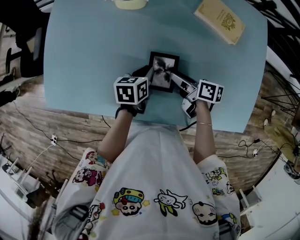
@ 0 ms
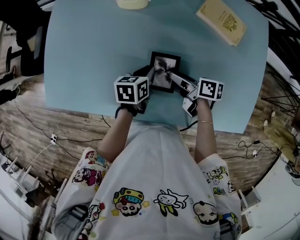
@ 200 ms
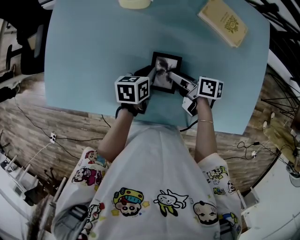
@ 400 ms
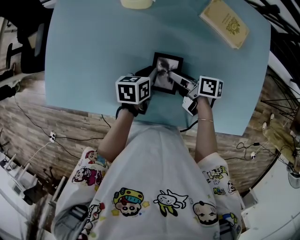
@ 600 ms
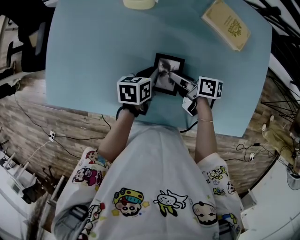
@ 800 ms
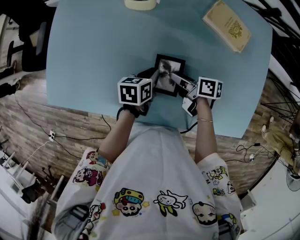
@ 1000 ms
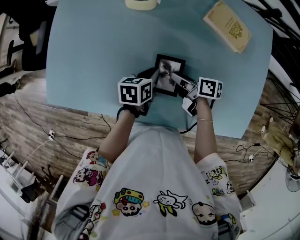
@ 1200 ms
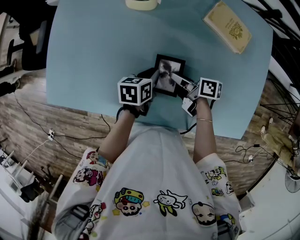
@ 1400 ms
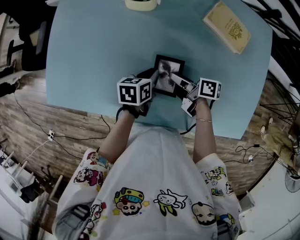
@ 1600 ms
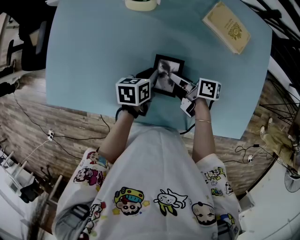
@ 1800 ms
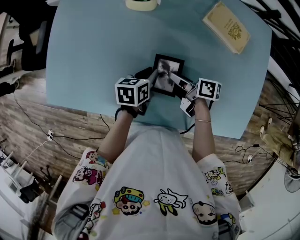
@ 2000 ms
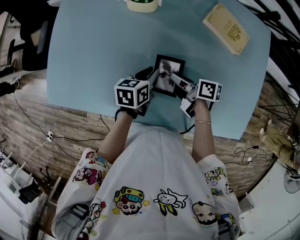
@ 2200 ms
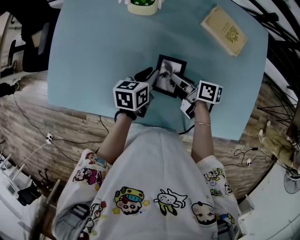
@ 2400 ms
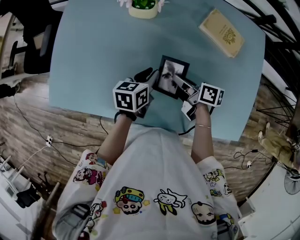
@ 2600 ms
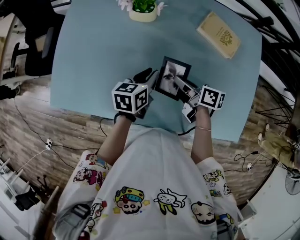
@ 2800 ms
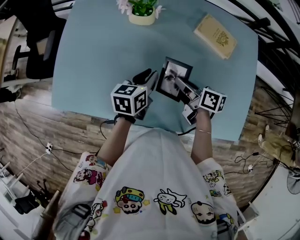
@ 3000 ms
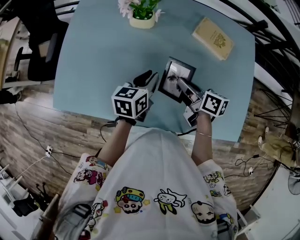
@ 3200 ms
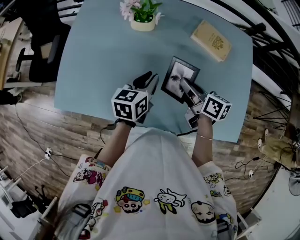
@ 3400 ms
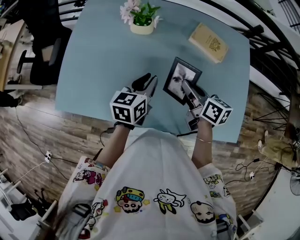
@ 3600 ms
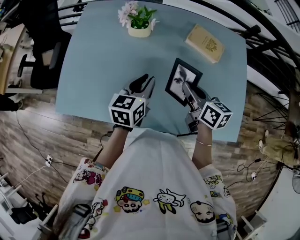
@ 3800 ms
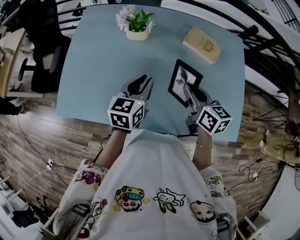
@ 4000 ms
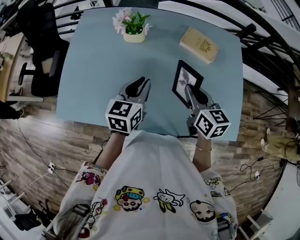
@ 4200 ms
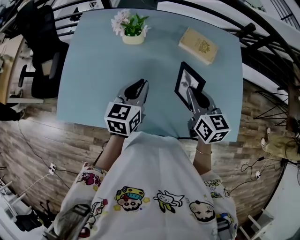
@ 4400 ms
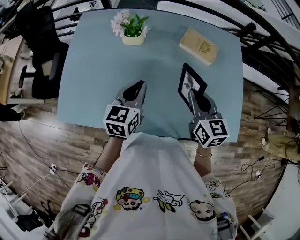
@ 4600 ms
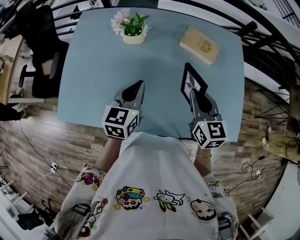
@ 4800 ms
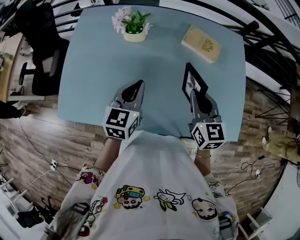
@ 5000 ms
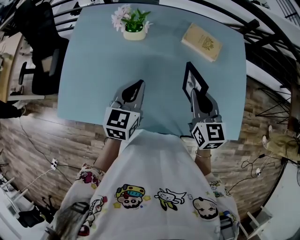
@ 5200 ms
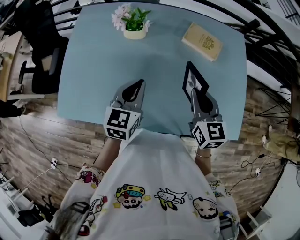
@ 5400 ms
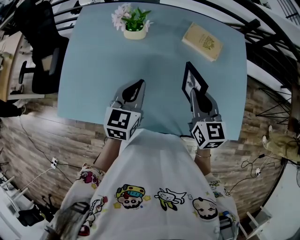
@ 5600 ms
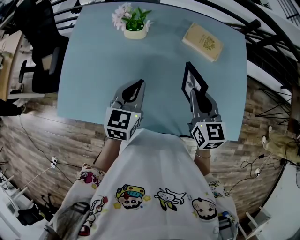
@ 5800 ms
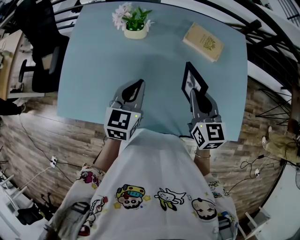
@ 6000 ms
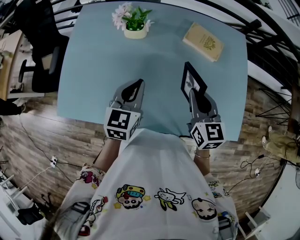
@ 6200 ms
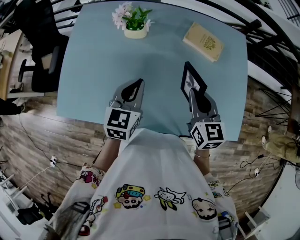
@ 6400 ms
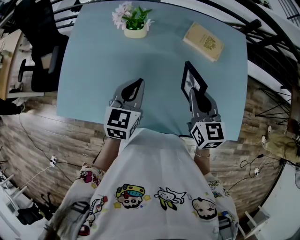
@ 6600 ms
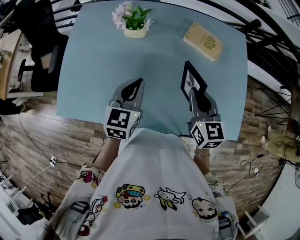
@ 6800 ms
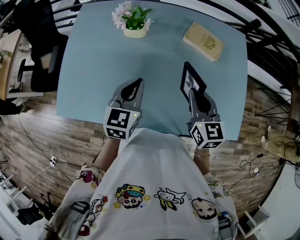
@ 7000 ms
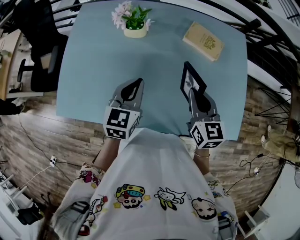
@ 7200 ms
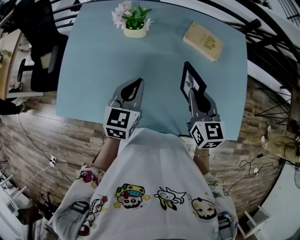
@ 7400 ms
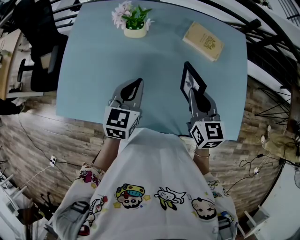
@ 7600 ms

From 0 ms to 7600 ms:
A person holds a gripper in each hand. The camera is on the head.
From 0 ms to 1600 ms: The right gripper closes its fingers.
From 1600 ms to 3000 ms: The grippers both shift upward by roughly 10 cm.
From 3000 ms to 4600 ms: The right gripper shifts approximately 15 cm upward and to the right, and turns by roughly 50 degrees, while the left gripper moves upward, about 10 cm, and rotates some 20 degrees.
From 4600 ms to 6000 ms: There are only small adjustments of the grippers.
From 6000 ms to 7600 ms: Both grippers stay about where they are.

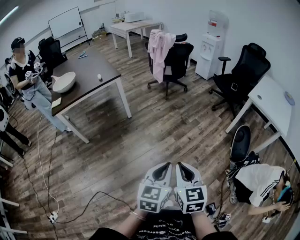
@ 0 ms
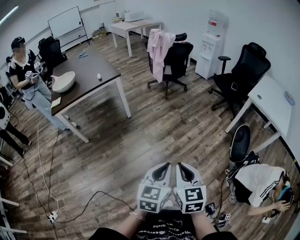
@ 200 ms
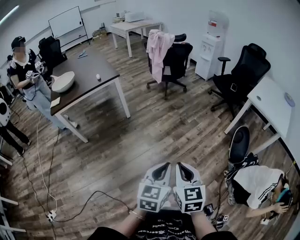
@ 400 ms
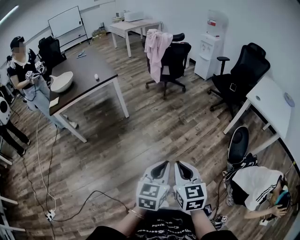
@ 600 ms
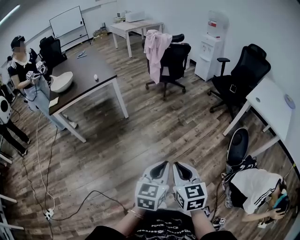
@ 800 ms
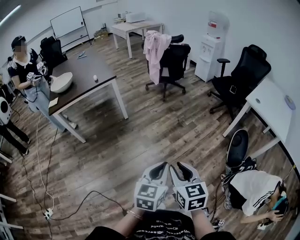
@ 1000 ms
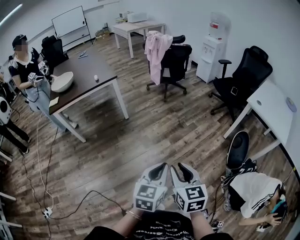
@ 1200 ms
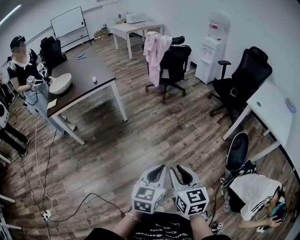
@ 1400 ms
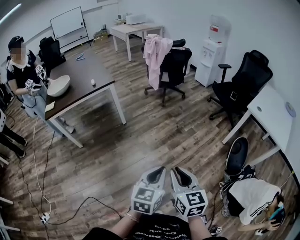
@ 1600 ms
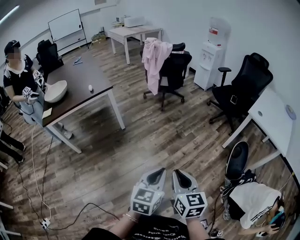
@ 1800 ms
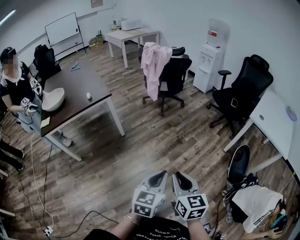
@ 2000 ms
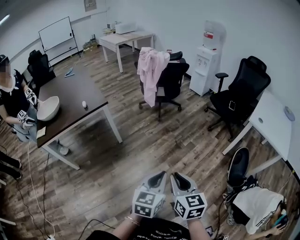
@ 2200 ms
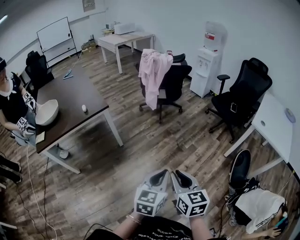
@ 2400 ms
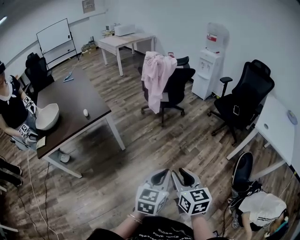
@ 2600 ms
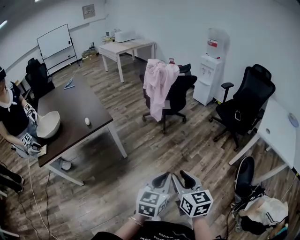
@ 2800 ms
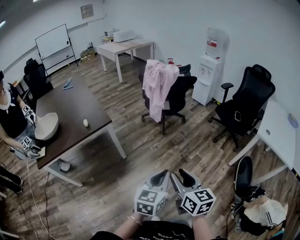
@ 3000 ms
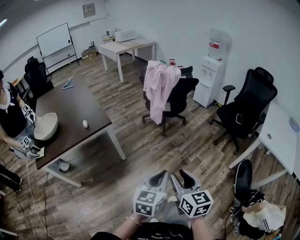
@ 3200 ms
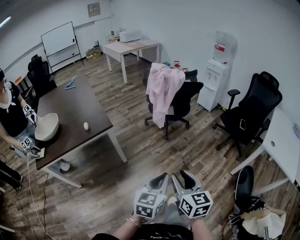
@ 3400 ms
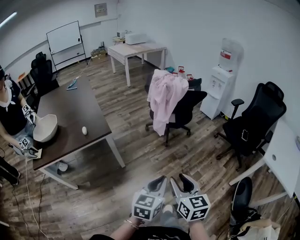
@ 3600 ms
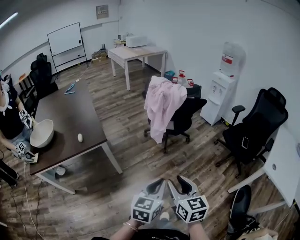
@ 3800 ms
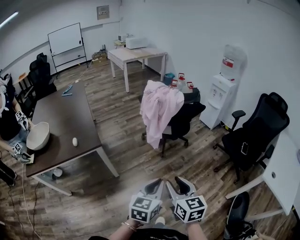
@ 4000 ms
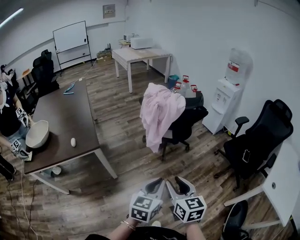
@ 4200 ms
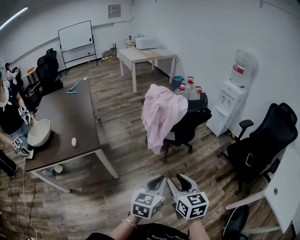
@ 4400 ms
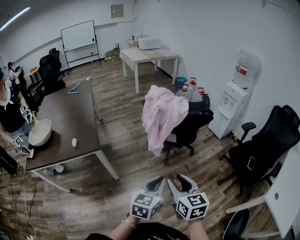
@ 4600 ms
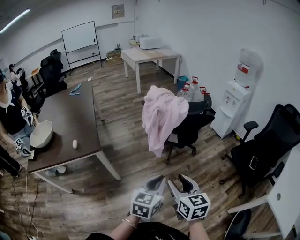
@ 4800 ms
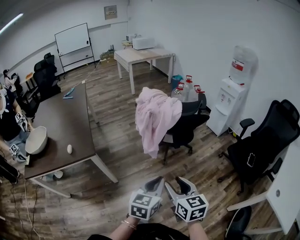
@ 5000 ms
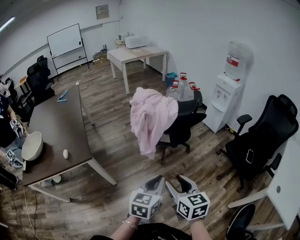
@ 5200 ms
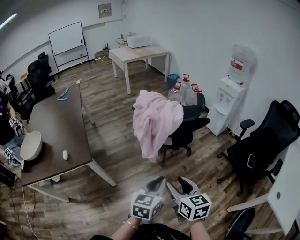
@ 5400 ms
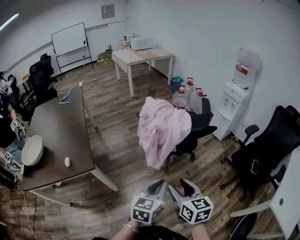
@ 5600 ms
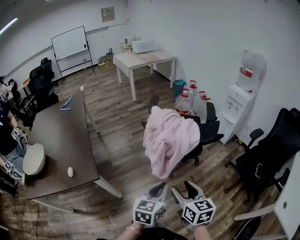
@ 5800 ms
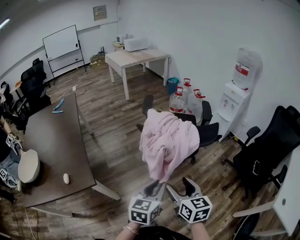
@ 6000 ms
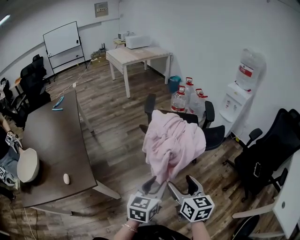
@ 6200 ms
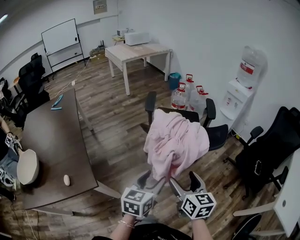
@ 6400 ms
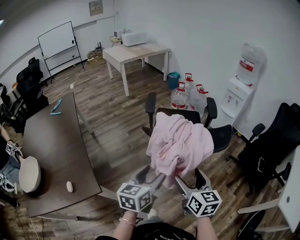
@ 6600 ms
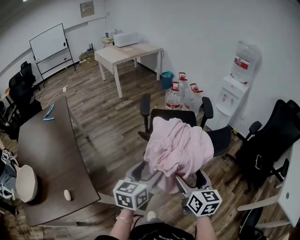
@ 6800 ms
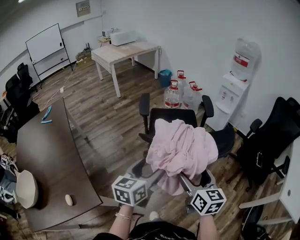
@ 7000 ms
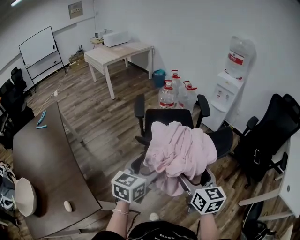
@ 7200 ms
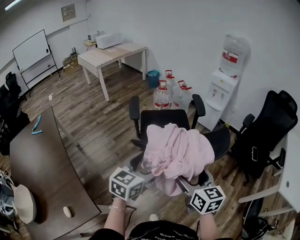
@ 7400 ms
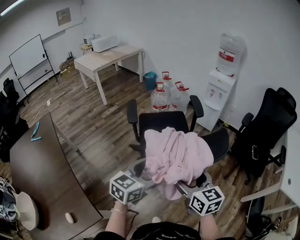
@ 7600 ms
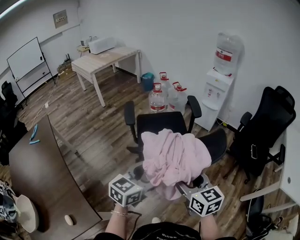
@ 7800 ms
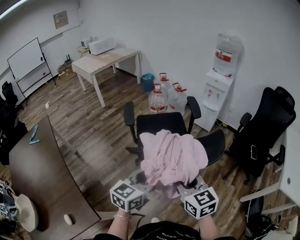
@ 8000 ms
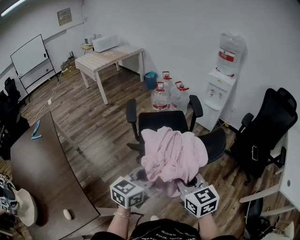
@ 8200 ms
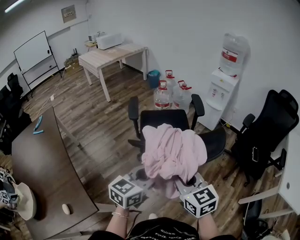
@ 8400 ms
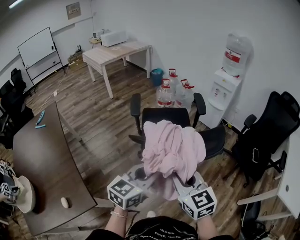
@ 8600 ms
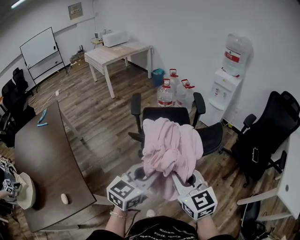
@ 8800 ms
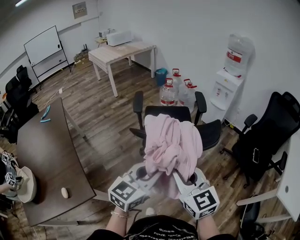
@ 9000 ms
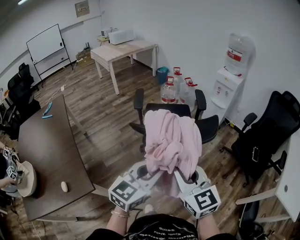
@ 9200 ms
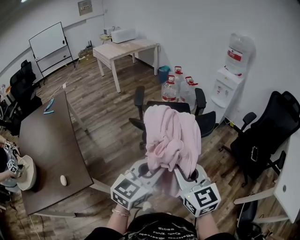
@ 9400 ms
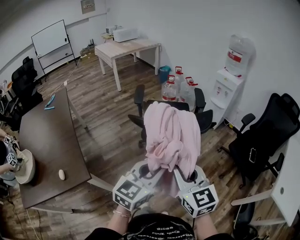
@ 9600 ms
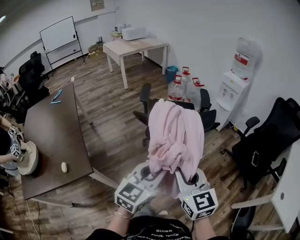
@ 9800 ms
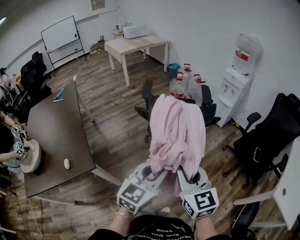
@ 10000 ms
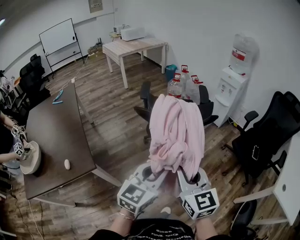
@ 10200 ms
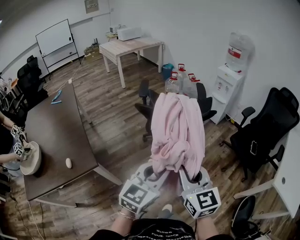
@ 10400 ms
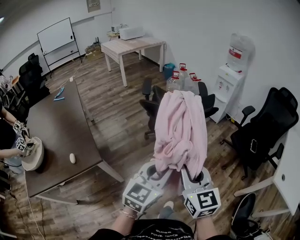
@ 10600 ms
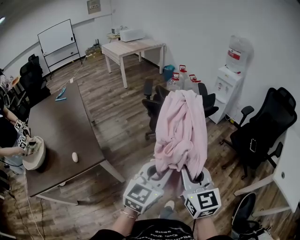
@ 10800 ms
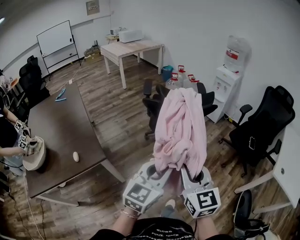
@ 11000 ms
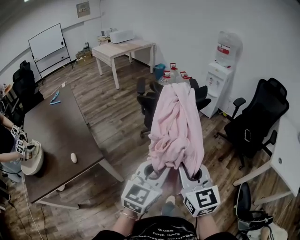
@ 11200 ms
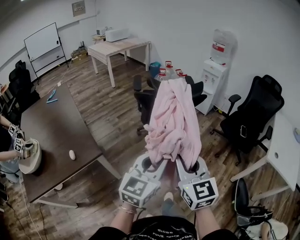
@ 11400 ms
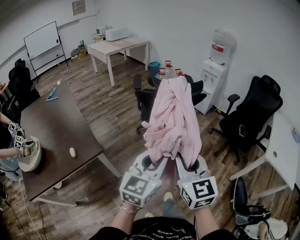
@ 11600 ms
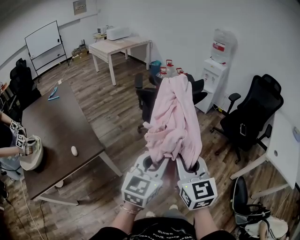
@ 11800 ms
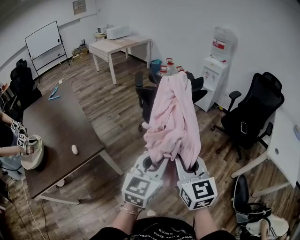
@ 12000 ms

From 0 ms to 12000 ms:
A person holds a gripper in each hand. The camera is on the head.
From 0 ms to 1600 ms: The right gripper shifts approximately 10 cm forward and to the right. Meanwhile the left gripper shifts approximately 10 cm forward.
From 1600 ms to 3000 ms: Both grippers travel together forward and to the left, approximately 30 cm.
From 3000 ms to 4400 ms: The grippers both shift forward by approximately 30 cm.
From 4400 ms to 6000 ms: Both grippers travel together forward, about 20 cm.
From 6000 ms to 7600 ms: Both grippers travel together forward, some 15 cm. The left gripper rotates approximately 30 degrees, and opens its fingers.
From 7600 ms to 9000 ms: The left gripper travels backward and to the right by some 10 cm, and closes its fingers; the right gripper heads backward and upward, covering approximately 10 cm, rotates approximately 30 degrees, and closes up.
From 9000 ms to 10400 ms: The two grippers go some 15 cm backward.
From 10400 ms to 12000 ms: The two grippers go about 15 cm backward.

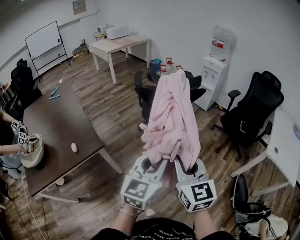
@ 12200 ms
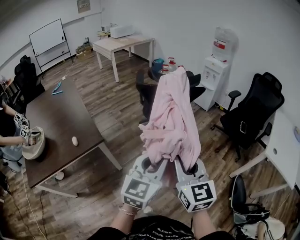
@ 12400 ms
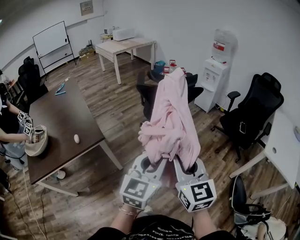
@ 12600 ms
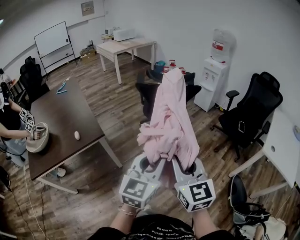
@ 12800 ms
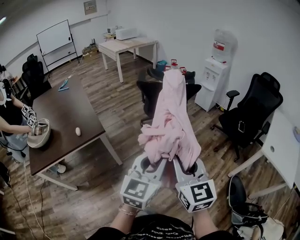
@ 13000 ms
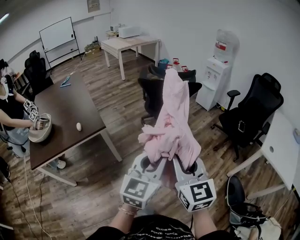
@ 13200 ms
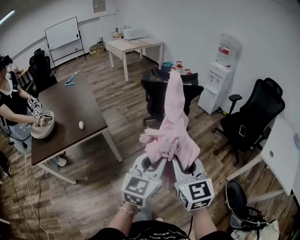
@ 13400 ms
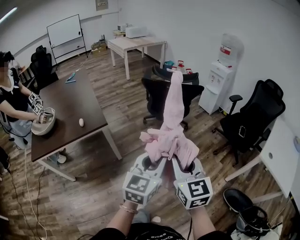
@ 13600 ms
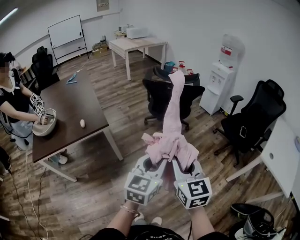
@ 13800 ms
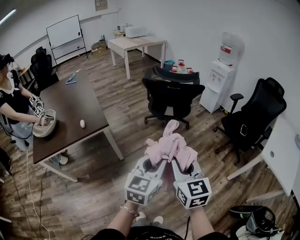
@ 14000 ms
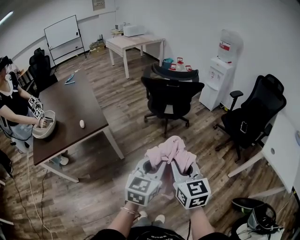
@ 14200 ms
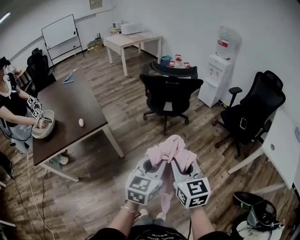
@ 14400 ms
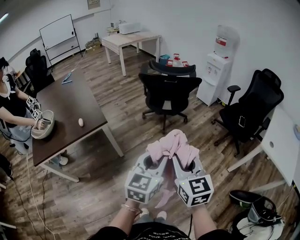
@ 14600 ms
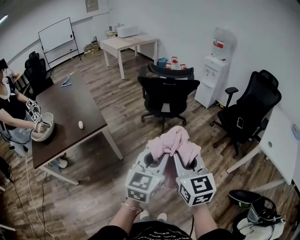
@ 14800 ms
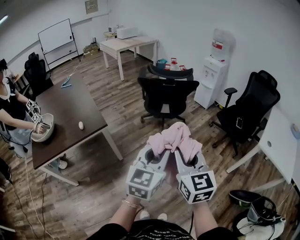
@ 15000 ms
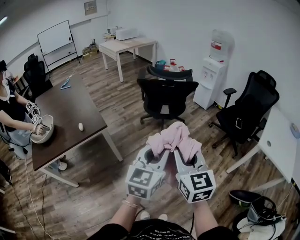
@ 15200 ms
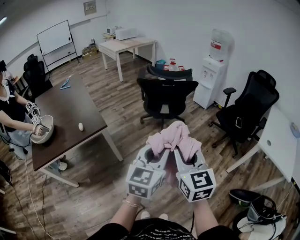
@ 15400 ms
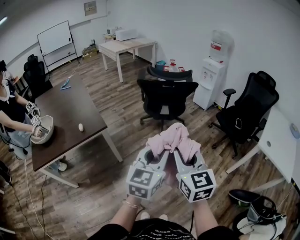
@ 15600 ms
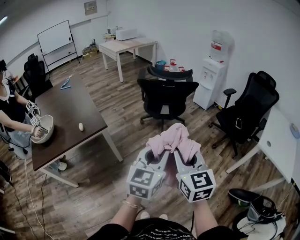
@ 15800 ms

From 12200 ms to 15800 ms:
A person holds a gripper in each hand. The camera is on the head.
From 12200 ms to 14000 ms: Both grippers travel together backward and to the right, approximately 15 cm.
From 14000 ms to 15800 ms: The grippers stay close to where they were, moving slightly.
